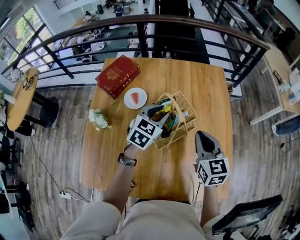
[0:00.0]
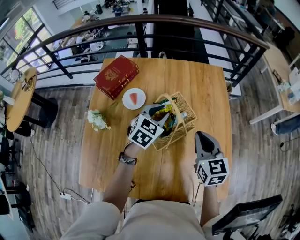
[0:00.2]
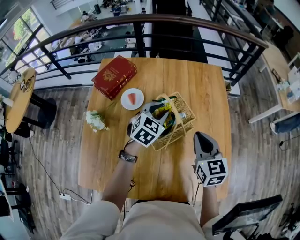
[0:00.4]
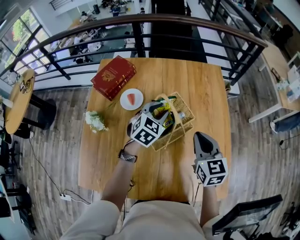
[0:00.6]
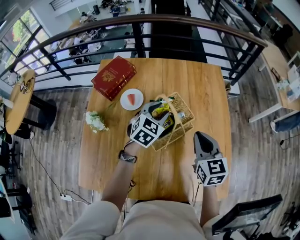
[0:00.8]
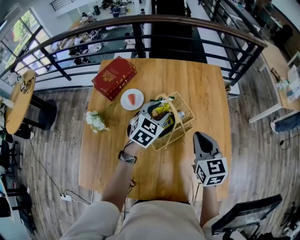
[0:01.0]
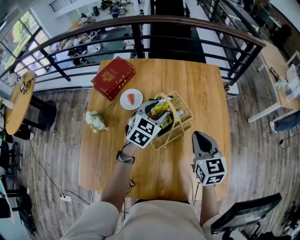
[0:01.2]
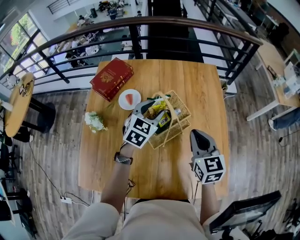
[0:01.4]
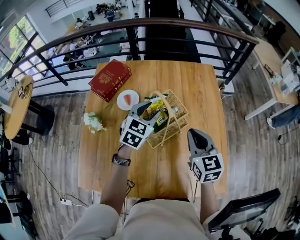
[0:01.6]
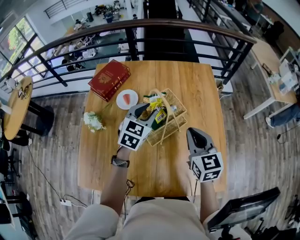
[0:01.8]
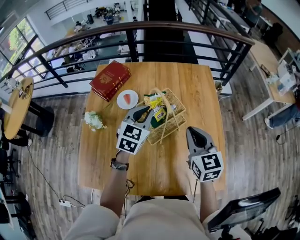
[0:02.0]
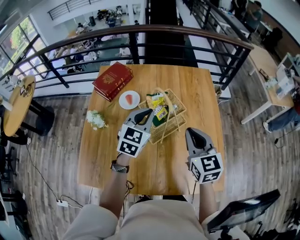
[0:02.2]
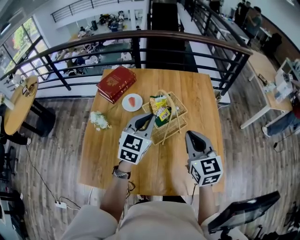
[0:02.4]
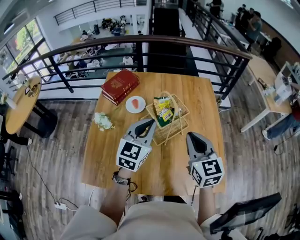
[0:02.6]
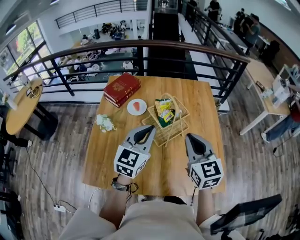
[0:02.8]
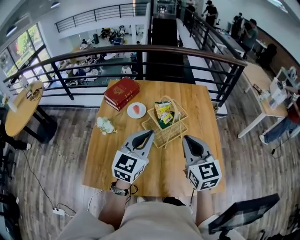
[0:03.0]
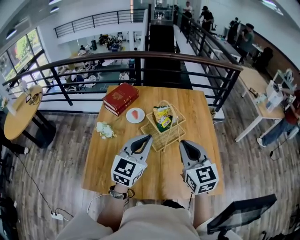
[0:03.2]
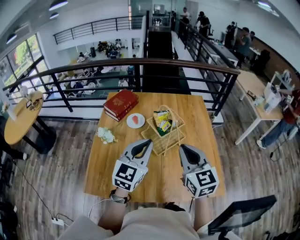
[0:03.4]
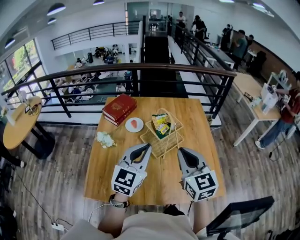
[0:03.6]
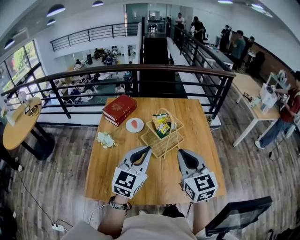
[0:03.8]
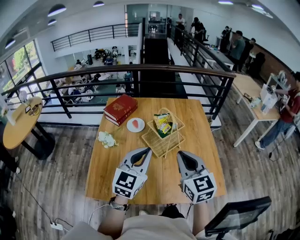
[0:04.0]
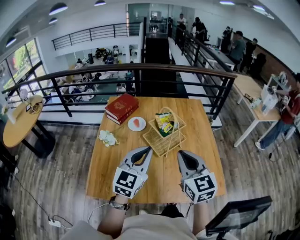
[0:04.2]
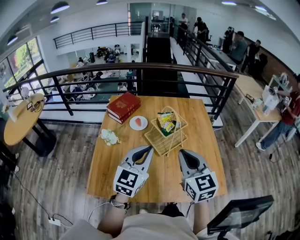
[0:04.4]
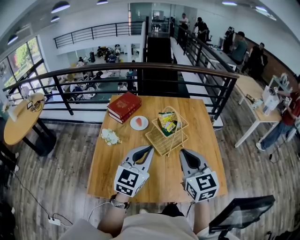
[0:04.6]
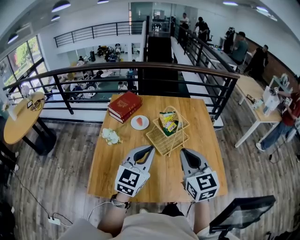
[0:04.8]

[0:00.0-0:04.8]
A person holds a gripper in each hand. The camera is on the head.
0:00.0 to 0:01.6: The grippers make only small movements.
0:01.6 to 0:03.2: The right gripper shifts approximately 20 cm backward, upward and to the left. Meanwhile the left gripper shifts approximately 25 cm backward and upward, changes its angle by some 20 degrees, and closes its fingers.
0:03.2 to 0:04.8: The left gripper ends up approximately 5 cm from where it was. Meanwhile the right gripper ends up some 5 cm from where it was.

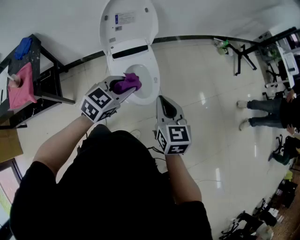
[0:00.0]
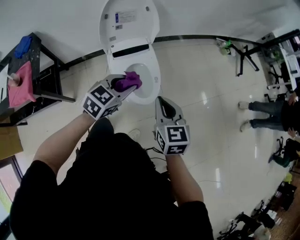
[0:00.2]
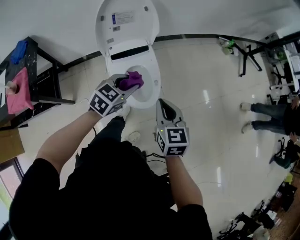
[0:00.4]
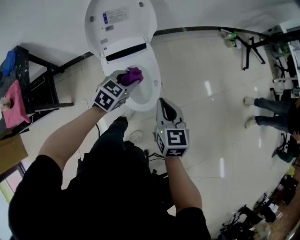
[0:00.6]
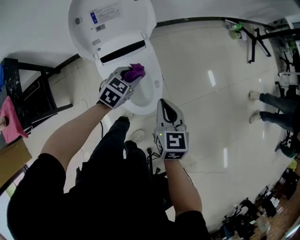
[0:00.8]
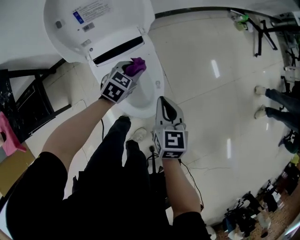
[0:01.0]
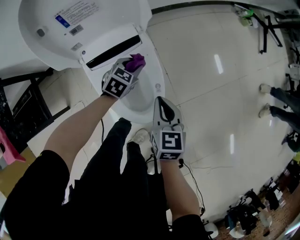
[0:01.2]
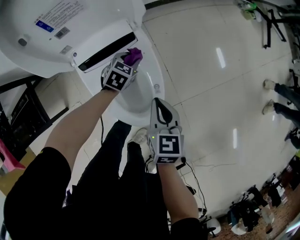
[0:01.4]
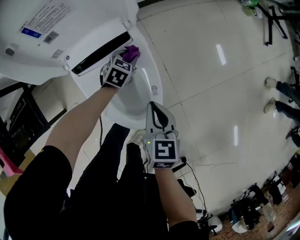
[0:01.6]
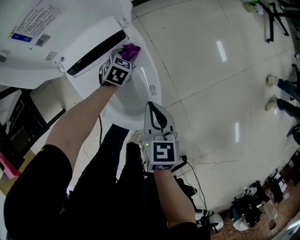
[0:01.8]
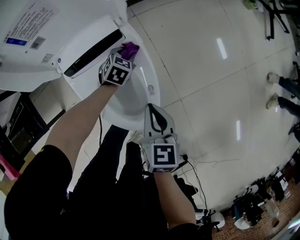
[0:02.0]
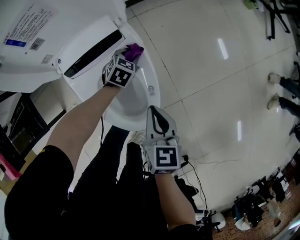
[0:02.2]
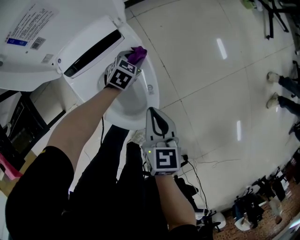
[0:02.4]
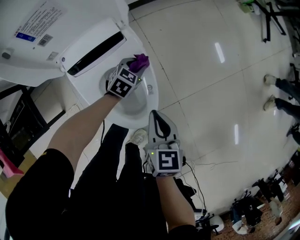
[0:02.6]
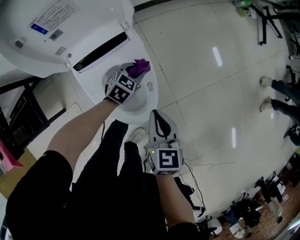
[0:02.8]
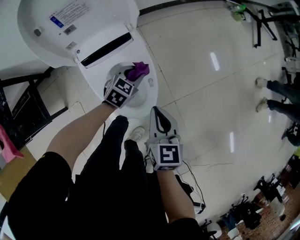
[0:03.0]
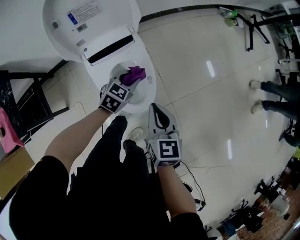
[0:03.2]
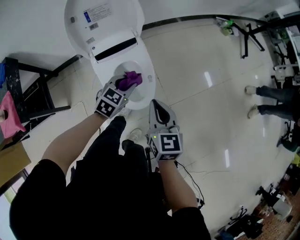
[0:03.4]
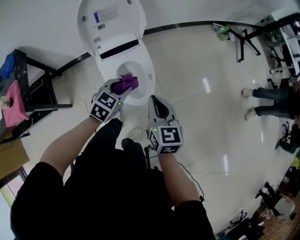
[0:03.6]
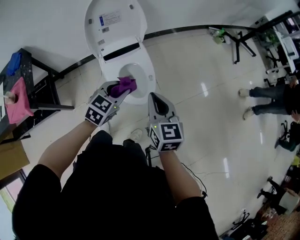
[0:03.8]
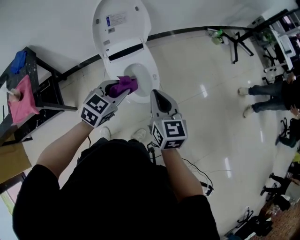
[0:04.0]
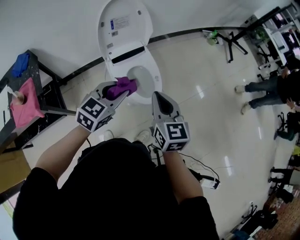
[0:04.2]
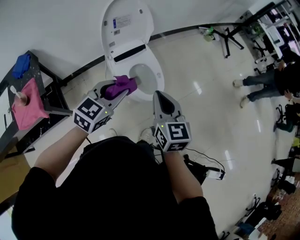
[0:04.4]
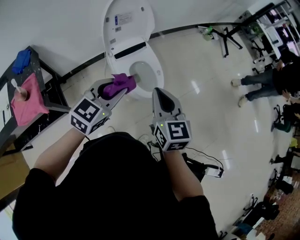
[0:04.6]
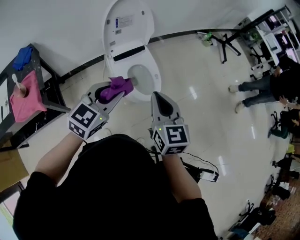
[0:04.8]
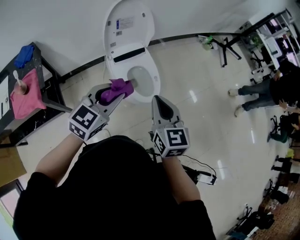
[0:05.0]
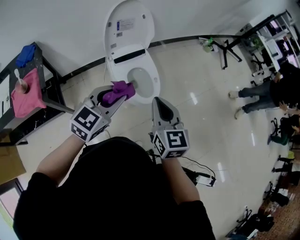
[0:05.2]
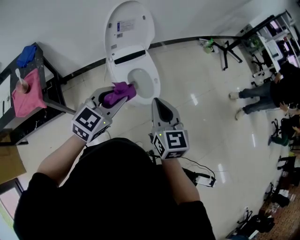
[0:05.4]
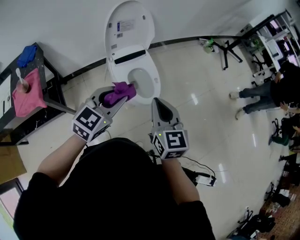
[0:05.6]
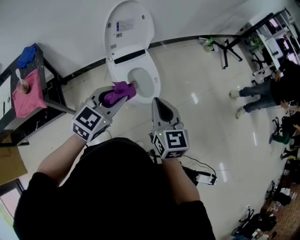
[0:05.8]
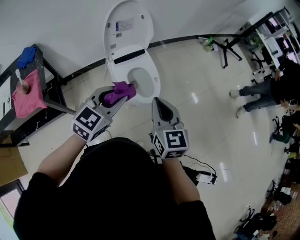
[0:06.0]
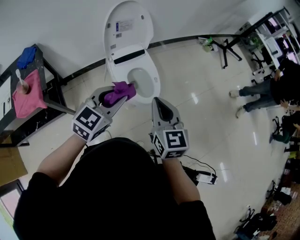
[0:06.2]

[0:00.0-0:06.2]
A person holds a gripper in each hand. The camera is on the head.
0:00.0 to 0:01.6: The grippers both shift downward and forward by about 50 cm. The left gripper turns by approximately 30 degrees. The right gripper turns by some 20 degrees.
0:01.6 to 0:03.2: Both grippers travel together upward and backward, roughly 25 cm.
0:03.2 to 0:04.6: Both grippers travel together backward, upward and to the left, about 40 cm. The left gripper turns by about 20 degrees.
0:04.6 to 0:06.2: The right gripper shifts by about 5 cm. Meanwhile the left gripper shifts by approximately 5 cm.

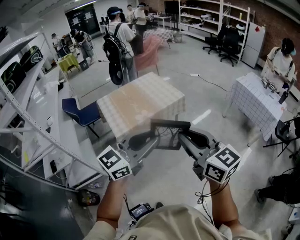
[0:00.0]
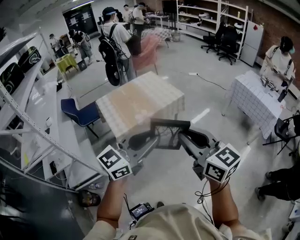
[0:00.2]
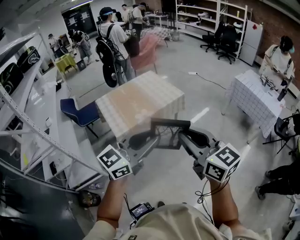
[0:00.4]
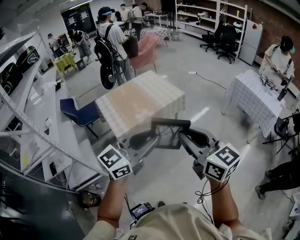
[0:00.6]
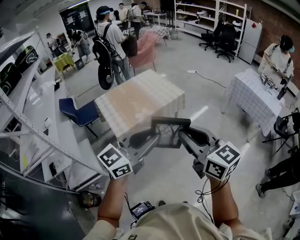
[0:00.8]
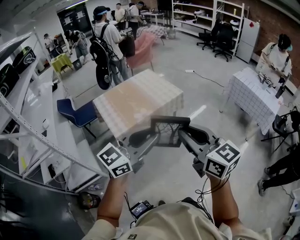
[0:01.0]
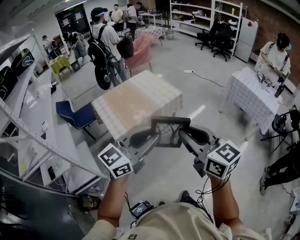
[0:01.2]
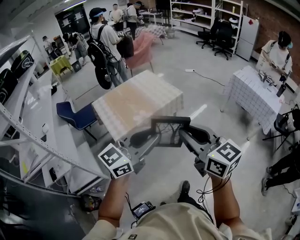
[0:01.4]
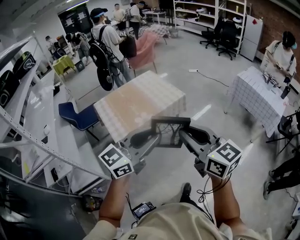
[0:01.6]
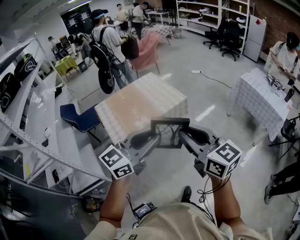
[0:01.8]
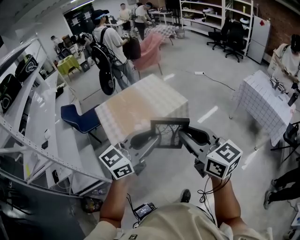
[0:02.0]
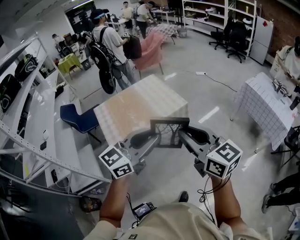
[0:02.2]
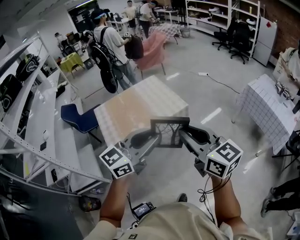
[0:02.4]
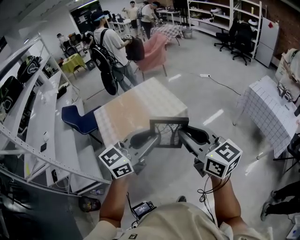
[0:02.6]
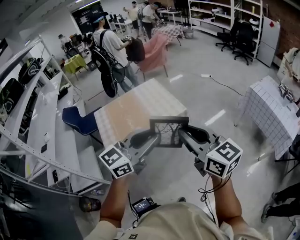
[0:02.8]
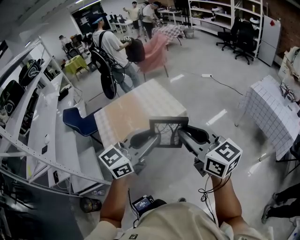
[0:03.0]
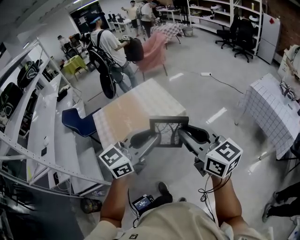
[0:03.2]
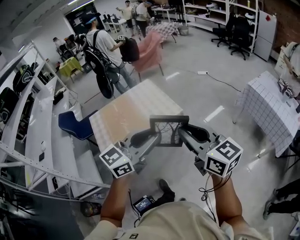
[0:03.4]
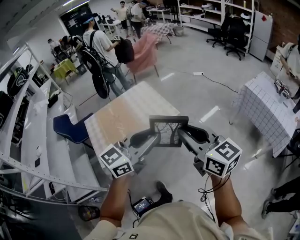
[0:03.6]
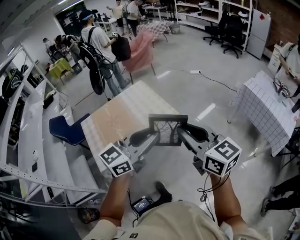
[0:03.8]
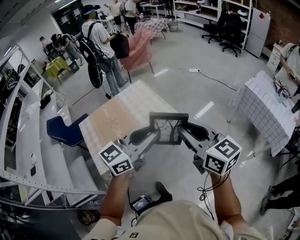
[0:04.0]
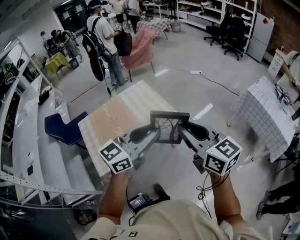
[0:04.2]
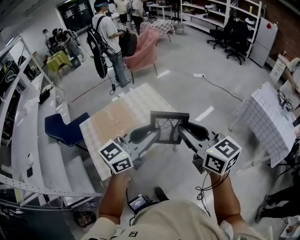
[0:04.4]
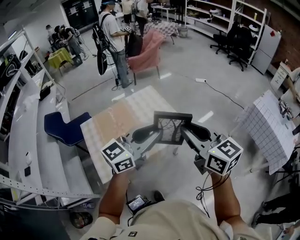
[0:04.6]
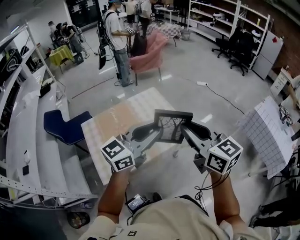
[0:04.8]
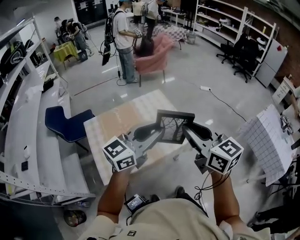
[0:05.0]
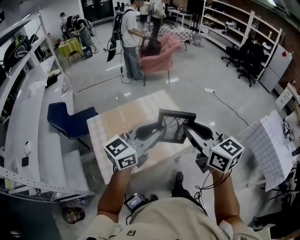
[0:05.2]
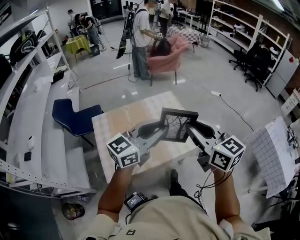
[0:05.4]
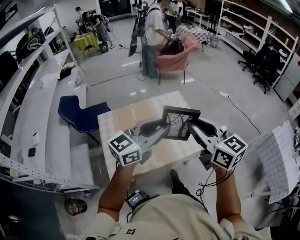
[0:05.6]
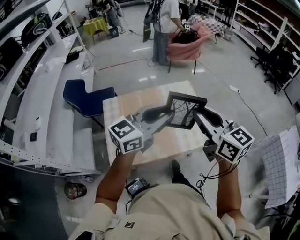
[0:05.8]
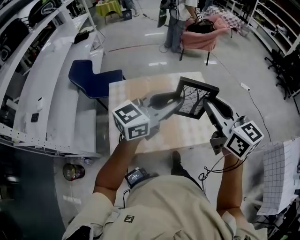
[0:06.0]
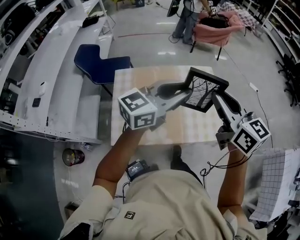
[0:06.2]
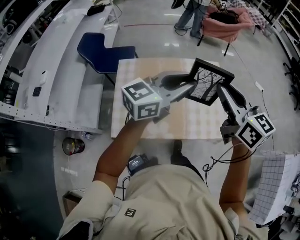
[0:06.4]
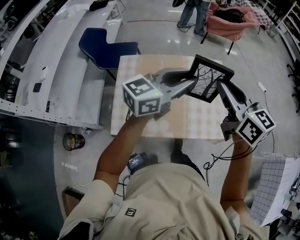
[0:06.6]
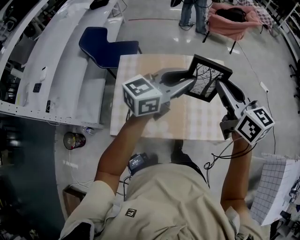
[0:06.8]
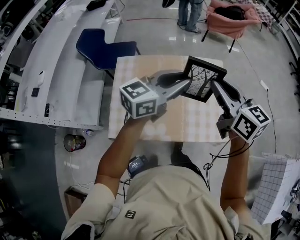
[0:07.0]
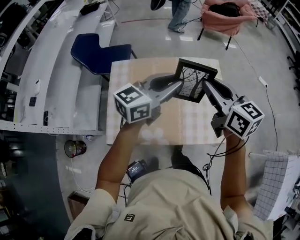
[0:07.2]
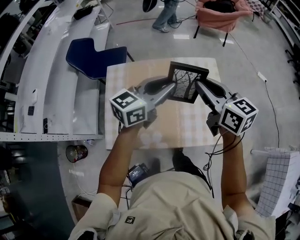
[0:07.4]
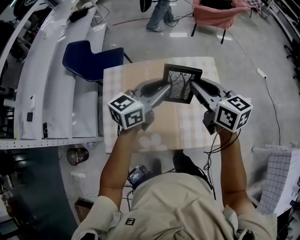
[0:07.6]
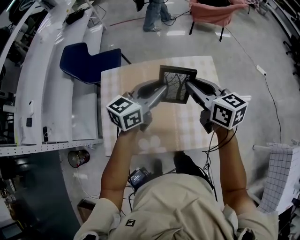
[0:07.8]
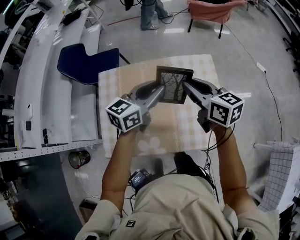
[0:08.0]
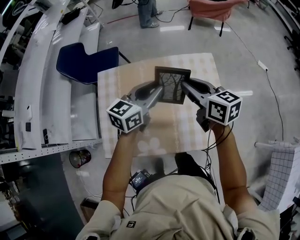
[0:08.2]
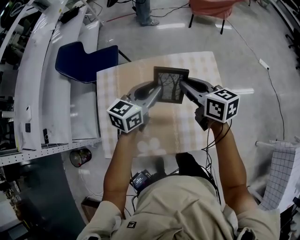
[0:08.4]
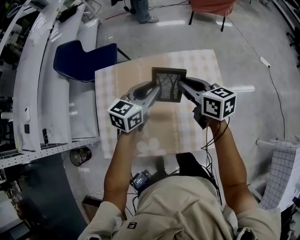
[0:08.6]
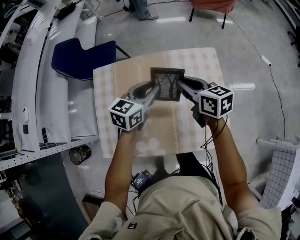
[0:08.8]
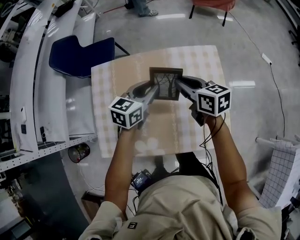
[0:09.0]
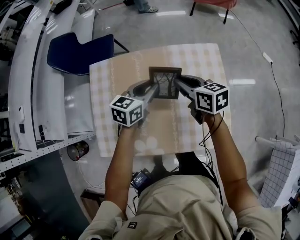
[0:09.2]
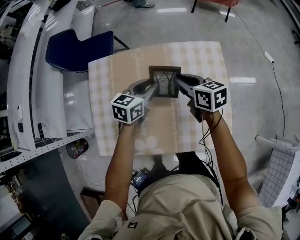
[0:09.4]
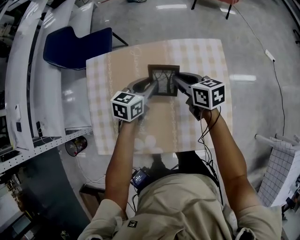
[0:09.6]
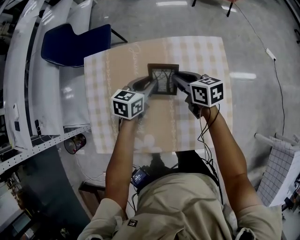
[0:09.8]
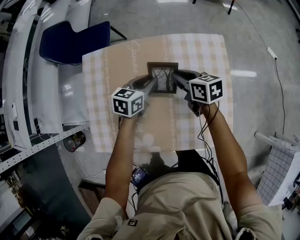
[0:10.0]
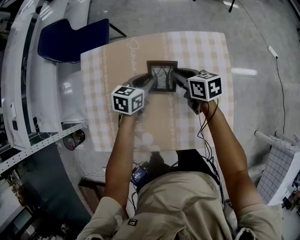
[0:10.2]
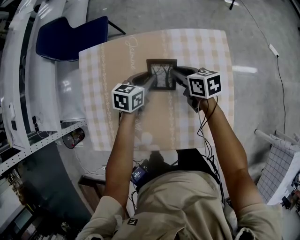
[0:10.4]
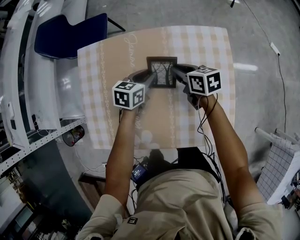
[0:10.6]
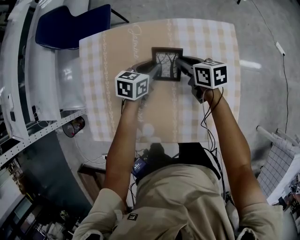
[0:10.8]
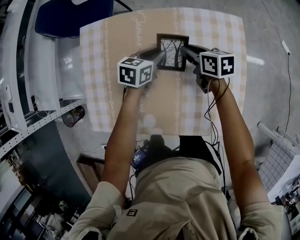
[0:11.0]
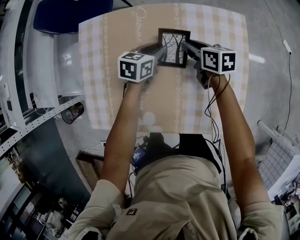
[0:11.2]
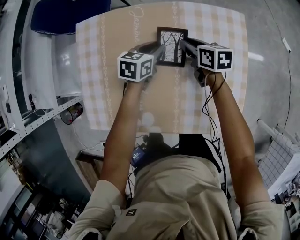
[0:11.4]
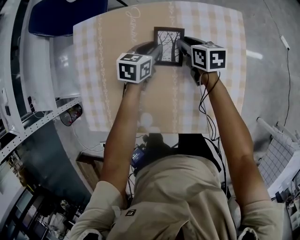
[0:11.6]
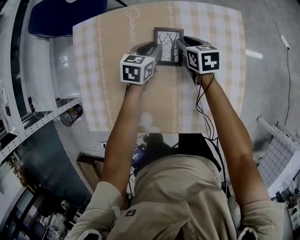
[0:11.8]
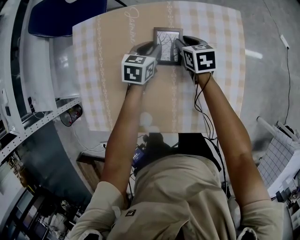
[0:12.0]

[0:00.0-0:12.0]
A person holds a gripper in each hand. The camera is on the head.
0:00.0 to 0:01.6: The grippers both shift forward by about 10 cm.
0:01.6 to 0:03.0: Both grippers travel together forward and to the right, about 25 cm.
0:03.0 to 0:04.4: The grippers both shift forward and to the left by approximately 25 cm.
0:04.4 to 0:06.0: The right gripper is displaced forward and to the left by some 25 cm, while the left gripper travels to the left and forward by approximately 20 cm.
0:06.0 to 0:07.6: The two grippers go approximately 25 cm forward and downward. The left gripper swivels approximately 20 degrees.
0:07.6 to 0:09.0: Both grippers travel together downward and forward, about 20 cm. The left gripper changes its angle by approximately 20 degrees.
0:09.0 to 0:10.4: The two grippers go some 15 cm downward.
0:10.4 to 0:12.0: Both grippers move downward, some 5 cm.
